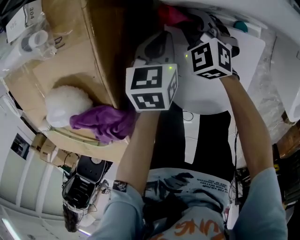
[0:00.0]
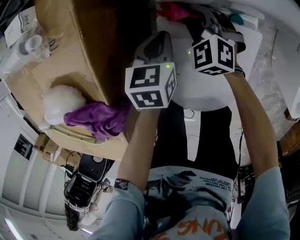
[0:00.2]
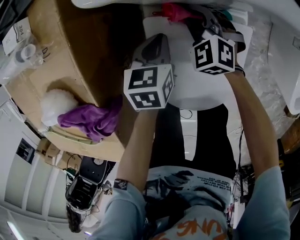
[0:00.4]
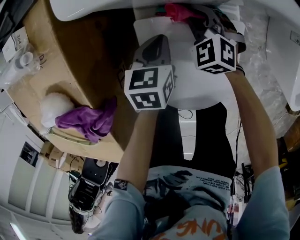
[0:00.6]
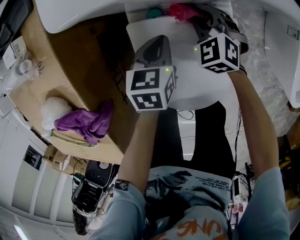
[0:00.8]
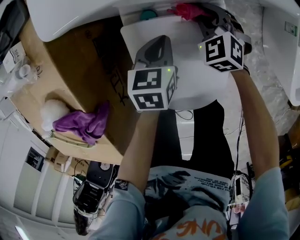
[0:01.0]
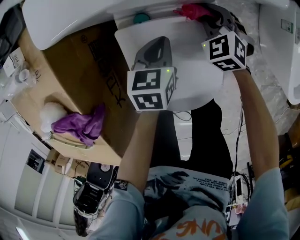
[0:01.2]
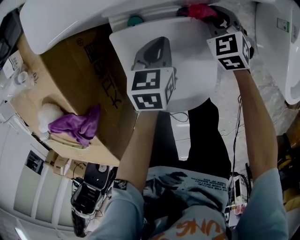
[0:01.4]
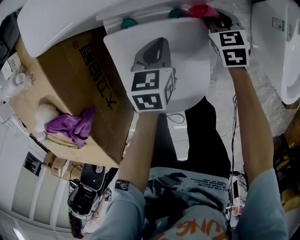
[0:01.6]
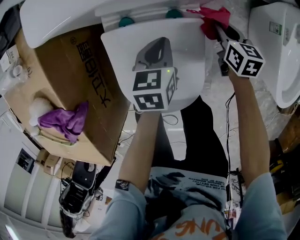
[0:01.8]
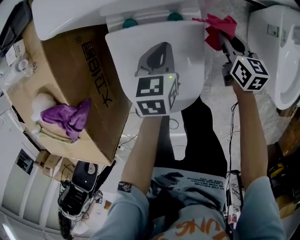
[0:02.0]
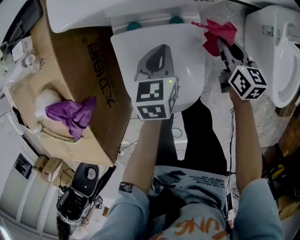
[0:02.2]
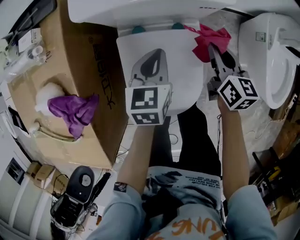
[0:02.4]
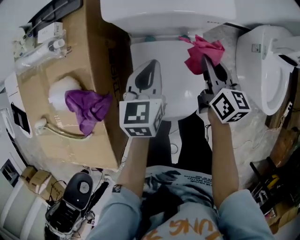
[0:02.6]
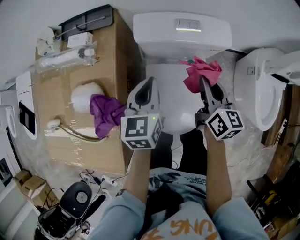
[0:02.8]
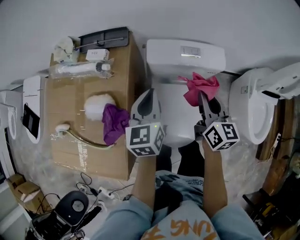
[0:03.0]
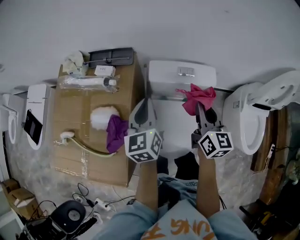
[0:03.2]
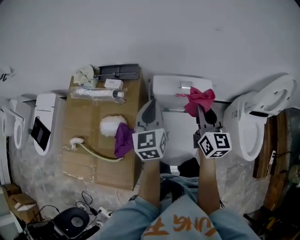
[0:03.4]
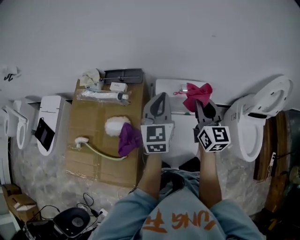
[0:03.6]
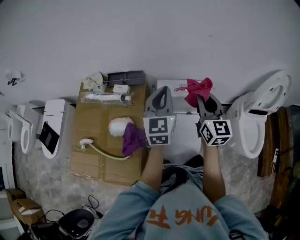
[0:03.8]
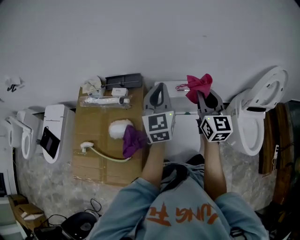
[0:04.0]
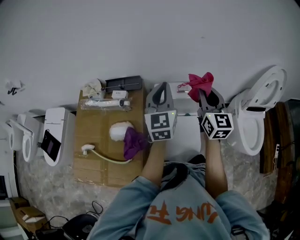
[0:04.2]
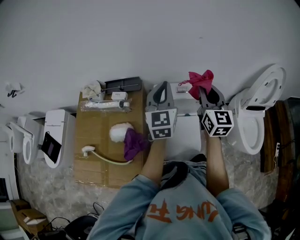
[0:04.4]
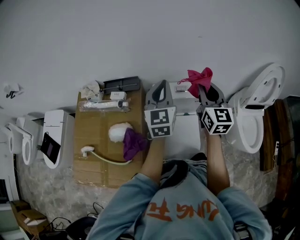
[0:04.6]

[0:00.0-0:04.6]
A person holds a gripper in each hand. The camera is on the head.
0:00.0 to 0:01.6: The right gripper is displaced to the right by roughly 35 cm, and rotates approximately 40 degrees, while the left gripper travels to the right by roughly 20 cm.
0:01.6 to 0:03.0: Both grippers move upward and to the left, about 40 cm. The right gripper tips its fingers upward by roughly 40 degrees, while the left gripper rotates about 40 degrees.
0:03.0 to 0:04.6: The two grippers go roughly 25 cm upward. The right gripper swivels roughly 30 degrees. The left gripper swivels approximately 30 degrees.

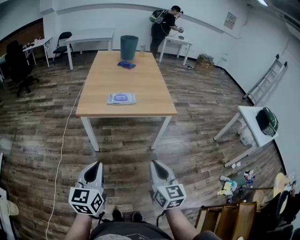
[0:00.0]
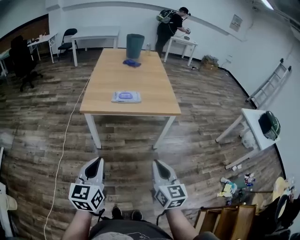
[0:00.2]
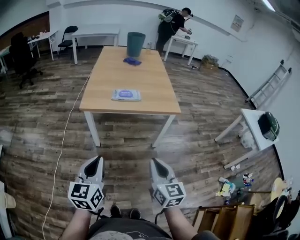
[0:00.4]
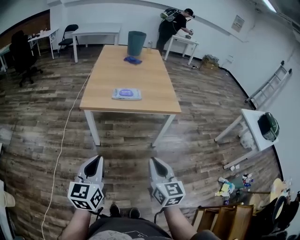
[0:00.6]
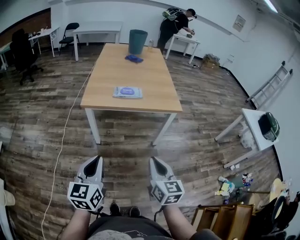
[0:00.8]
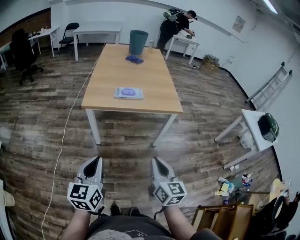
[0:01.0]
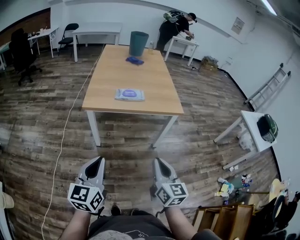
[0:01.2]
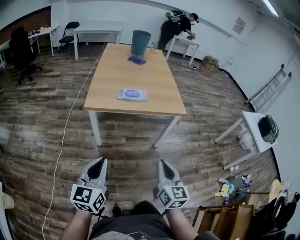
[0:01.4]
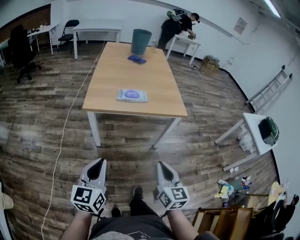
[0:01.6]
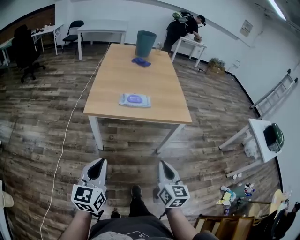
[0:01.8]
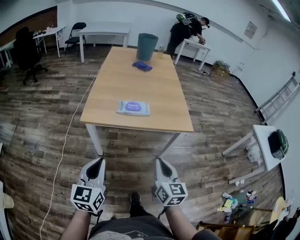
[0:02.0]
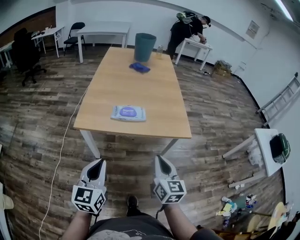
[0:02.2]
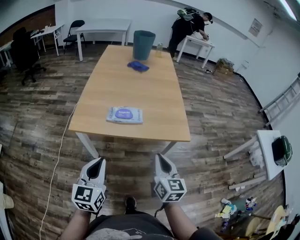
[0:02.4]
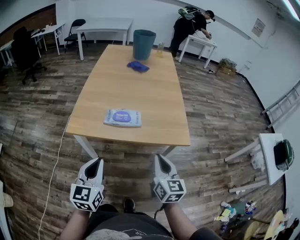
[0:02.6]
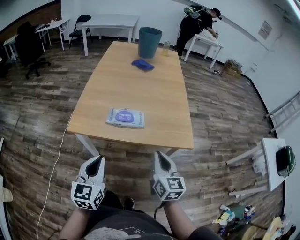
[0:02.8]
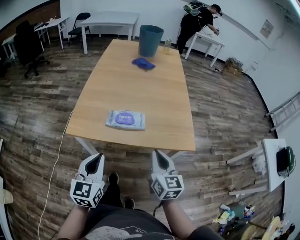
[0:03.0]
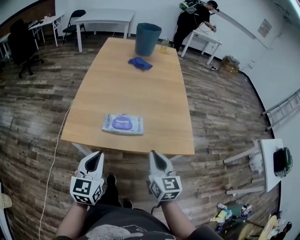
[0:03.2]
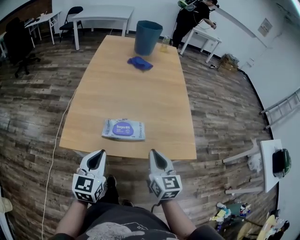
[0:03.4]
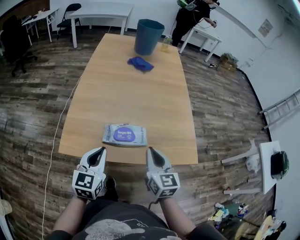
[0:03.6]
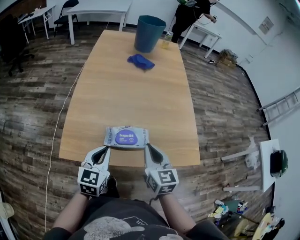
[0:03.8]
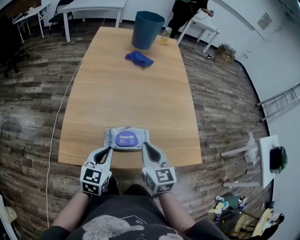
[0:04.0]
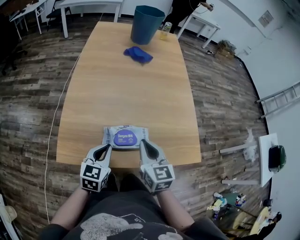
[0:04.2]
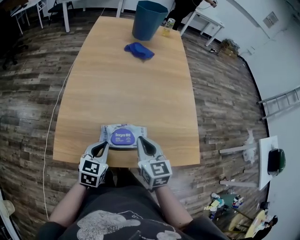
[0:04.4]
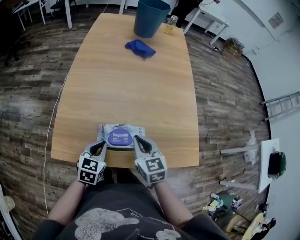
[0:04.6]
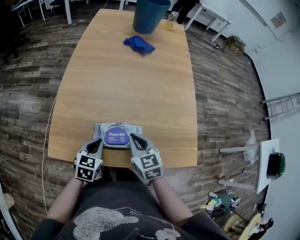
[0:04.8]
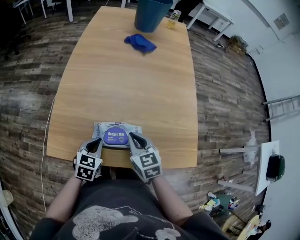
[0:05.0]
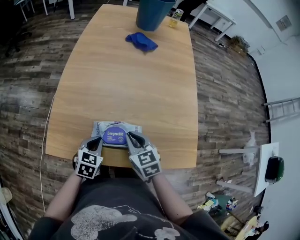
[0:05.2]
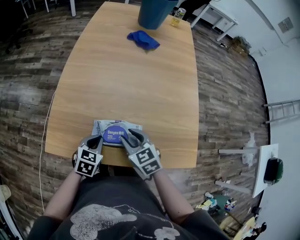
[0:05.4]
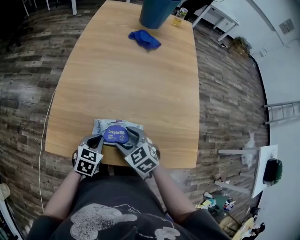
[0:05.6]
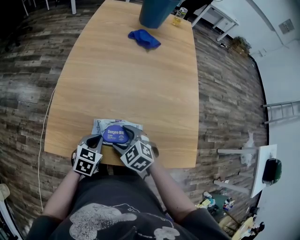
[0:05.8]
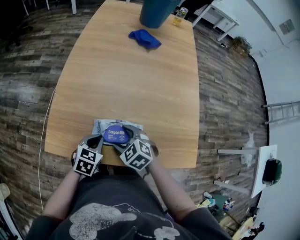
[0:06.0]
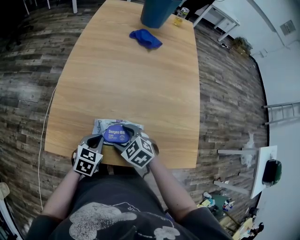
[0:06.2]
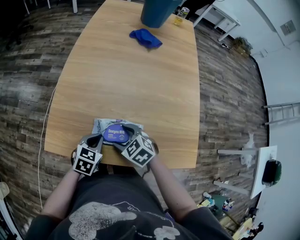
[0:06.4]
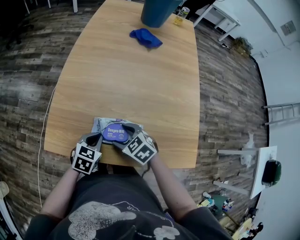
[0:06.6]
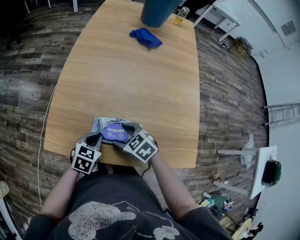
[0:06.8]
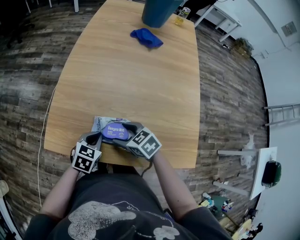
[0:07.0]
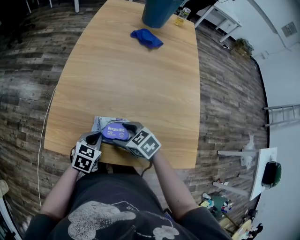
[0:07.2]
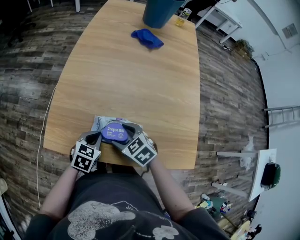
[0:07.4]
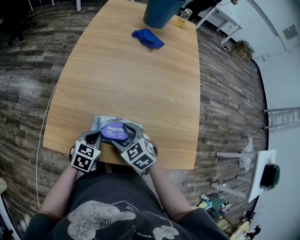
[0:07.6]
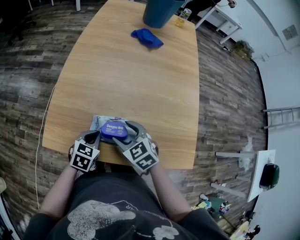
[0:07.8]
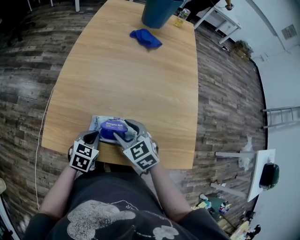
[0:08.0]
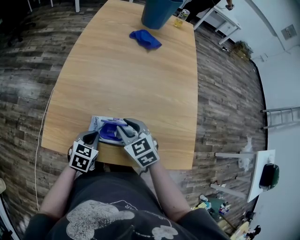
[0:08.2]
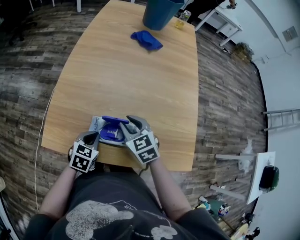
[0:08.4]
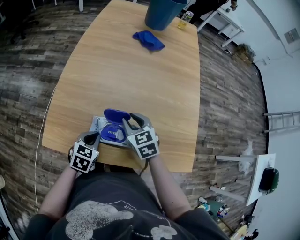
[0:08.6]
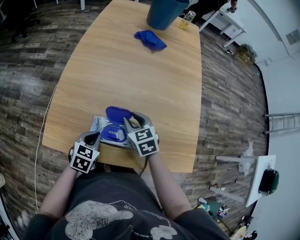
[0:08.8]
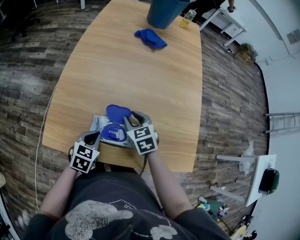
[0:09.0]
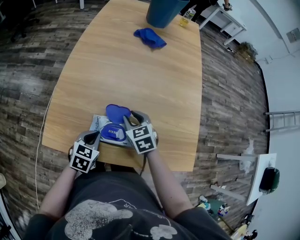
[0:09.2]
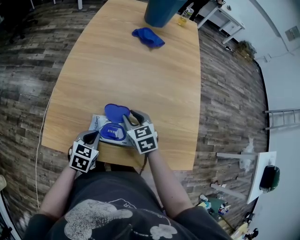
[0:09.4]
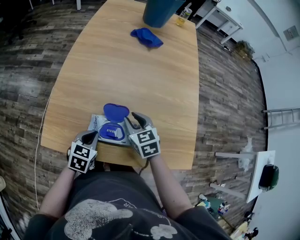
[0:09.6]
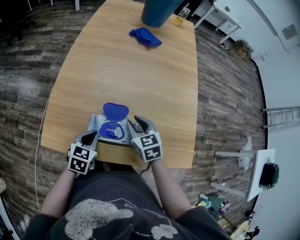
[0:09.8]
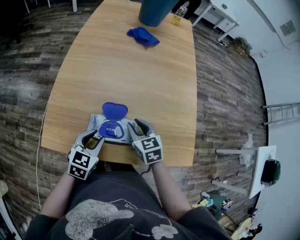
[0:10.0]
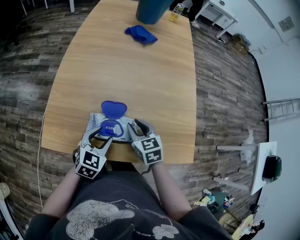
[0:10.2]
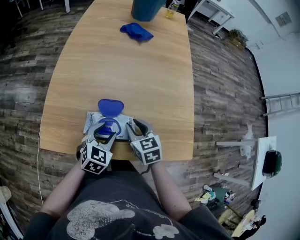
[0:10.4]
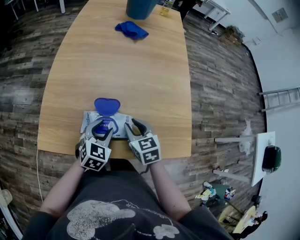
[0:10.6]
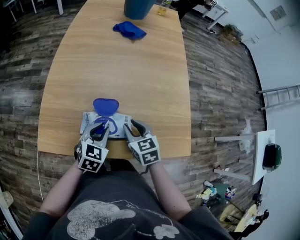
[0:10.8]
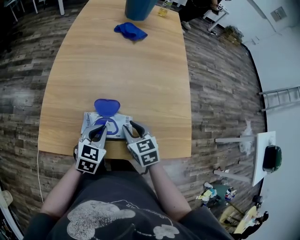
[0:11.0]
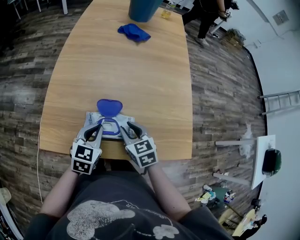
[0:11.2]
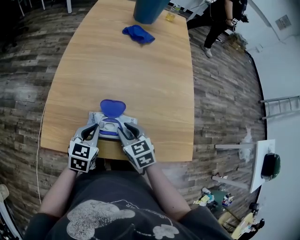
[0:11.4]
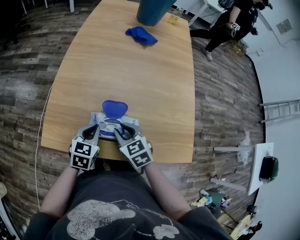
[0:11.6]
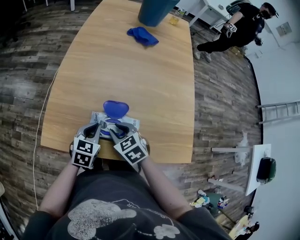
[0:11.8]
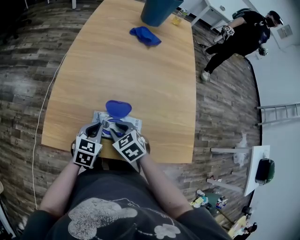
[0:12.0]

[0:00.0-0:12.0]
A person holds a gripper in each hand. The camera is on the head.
0:00.0 to 0:01.6: The left gripper moves roughly 5 cm.
0:01.6 to 0:03.0: Both grippers travel together forward, some 30 cm.
0:03.0 to 0:04.4: The left gripper goes about 25 cm forward and downward, and changes its angle by about 20 degrees. Meanwhile the right gripper is displaced forward and to the left by about 20 cm.
0:04.4 to 0:06.0: The right gripper heads downward and to the left, covering some 10 cm, swivels roughly 50 degrees, and opens its fingers; the left gripper goes approximately 5 cm downward.
0:07.6 to 0:09.0: The right gripper heads forward and to the right, covering about 10 cm, rotates approximately 20 degrees, and closes up.
0:09.0 to 0:10.4: The right gripper travels backward by approximately 5 cm; the left gripper goes some 5 cm to the right, and opens its fingers.
0:10.4 to 0:12.0: Both grippers move to the left, some 10 cm. The left gripper closes up. The right gripper changes its angle by approximately 30 degrees.

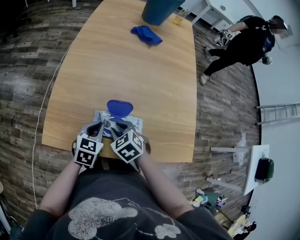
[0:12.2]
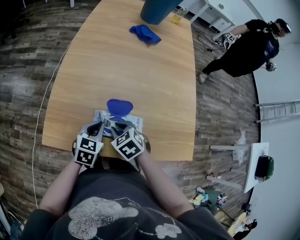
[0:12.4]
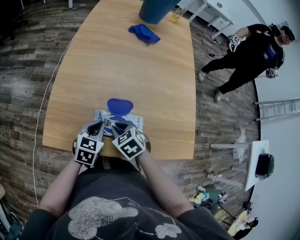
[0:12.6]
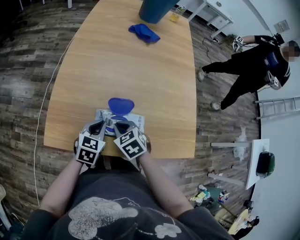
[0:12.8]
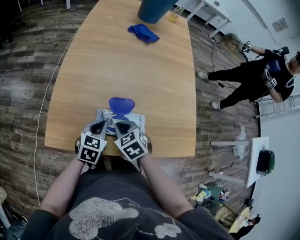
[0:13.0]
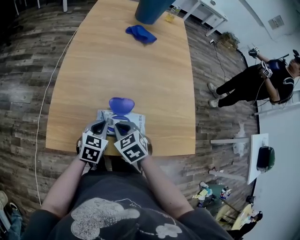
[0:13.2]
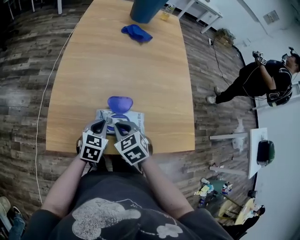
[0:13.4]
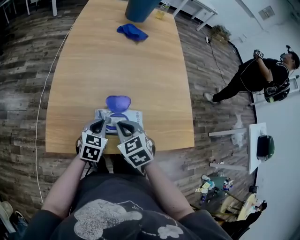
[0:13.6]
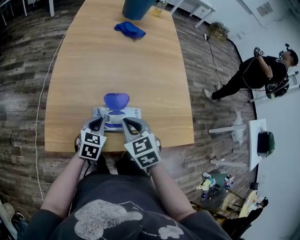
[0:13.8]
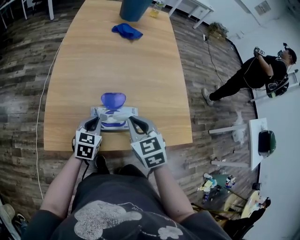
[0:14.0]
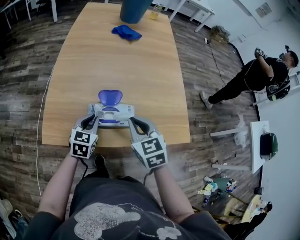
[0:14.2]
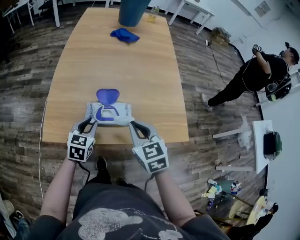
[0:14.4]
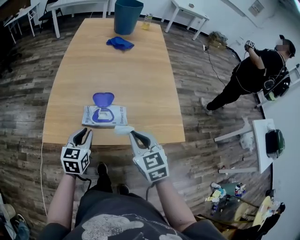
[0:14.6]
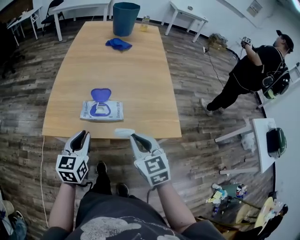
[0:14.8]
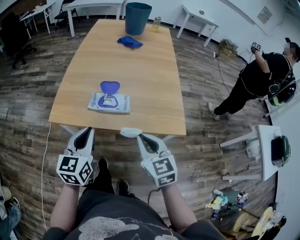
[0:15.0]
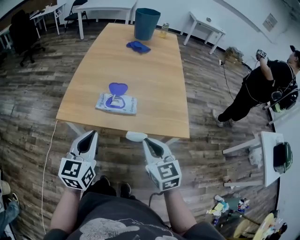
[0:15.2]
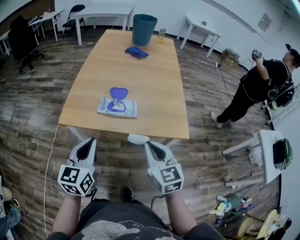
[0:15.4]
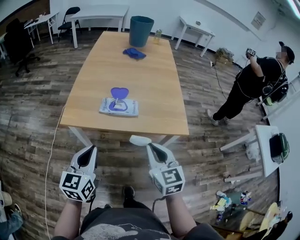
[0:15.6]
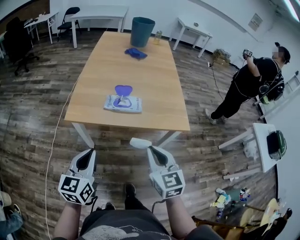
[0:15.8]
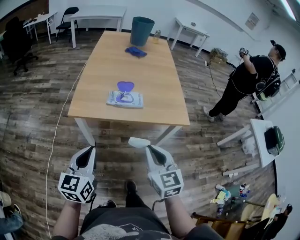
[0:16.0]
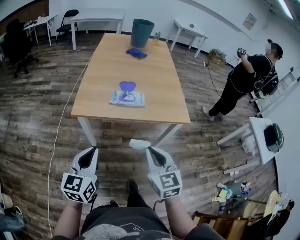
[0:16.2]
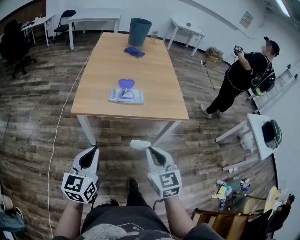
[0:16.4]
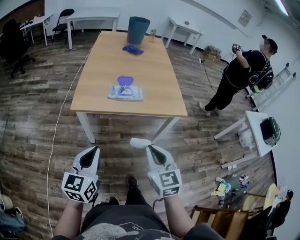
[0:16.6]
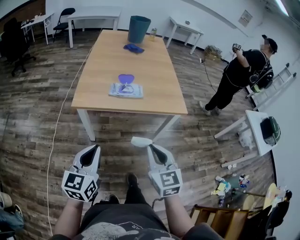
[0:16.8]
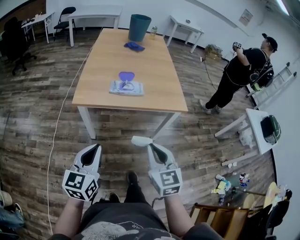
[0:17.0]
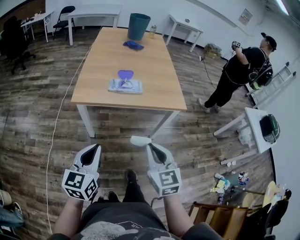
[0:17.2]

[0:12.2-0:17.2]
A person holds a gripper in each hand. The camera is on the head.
0:12.2 to 0:13.8: The right gripper shifts roughly 10 cm upward, and swivels about 20 degrees.
0:13.8 to 0:15.6: The left gripper goes about 30 cm backward and upward, swivels about 30 degrees, and opens, then closes again, while the right gripper shifts approximately 25 cm backward and to the right, and swivels approximately 20 degrees.
0:15.6 to 0:17.2: The grippers both shift backward by about 15 cm.

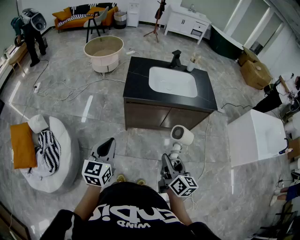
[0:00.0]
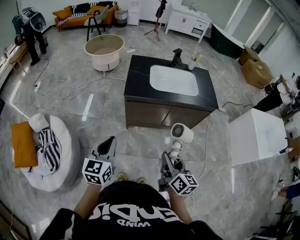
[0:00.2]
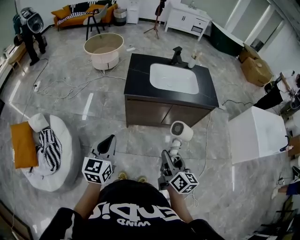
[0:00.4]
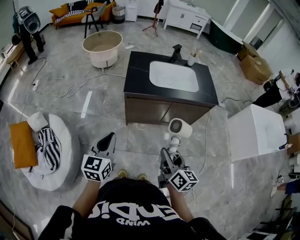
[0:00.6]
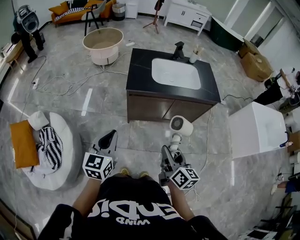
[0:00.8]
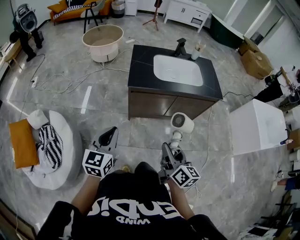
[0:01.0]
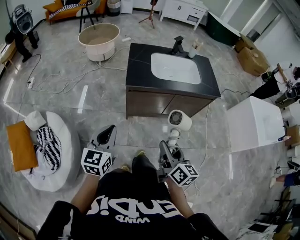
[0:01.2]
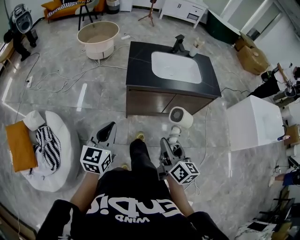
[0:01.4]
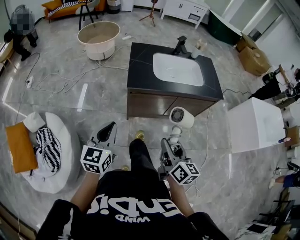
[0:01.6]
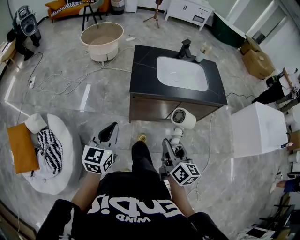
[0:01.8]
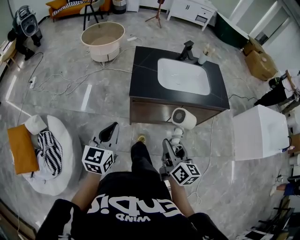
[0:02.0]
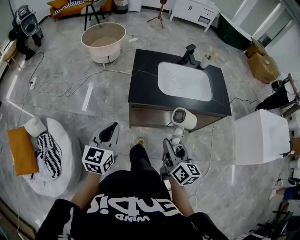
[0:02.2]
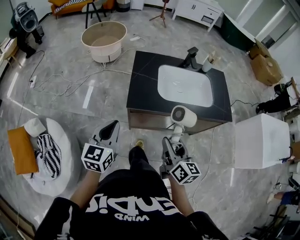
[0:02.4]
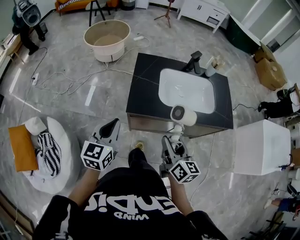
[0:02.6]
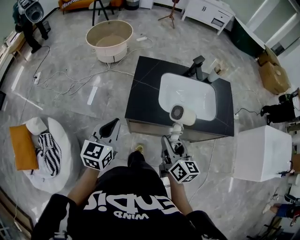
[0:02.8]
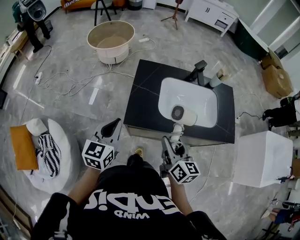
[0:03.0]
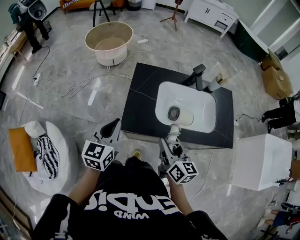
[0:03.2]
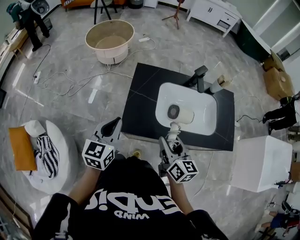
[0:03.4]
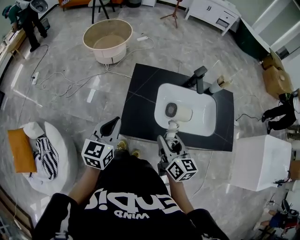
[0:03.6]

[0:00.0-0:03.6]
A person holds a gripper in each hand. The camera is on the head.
0:00.0 to 0:01.8: The two grippers go some 10 cm forward and to the left.
0:01.8 to 0:03.6: Both grippers move forward, about 35 cm.
